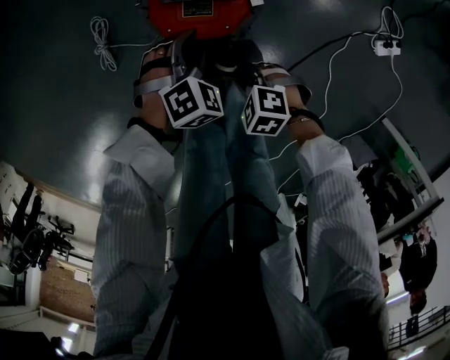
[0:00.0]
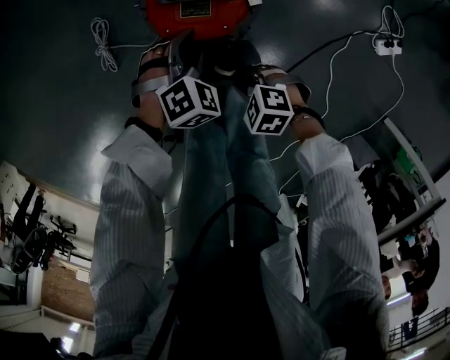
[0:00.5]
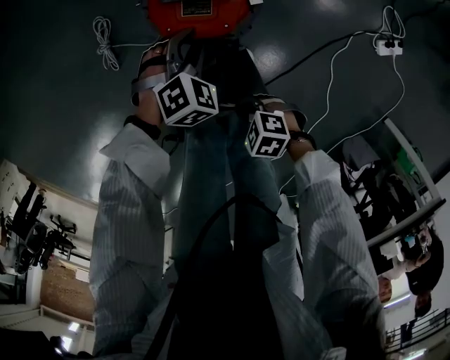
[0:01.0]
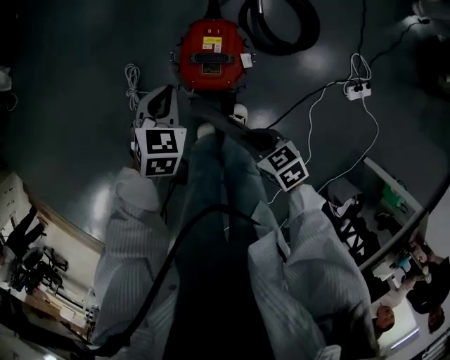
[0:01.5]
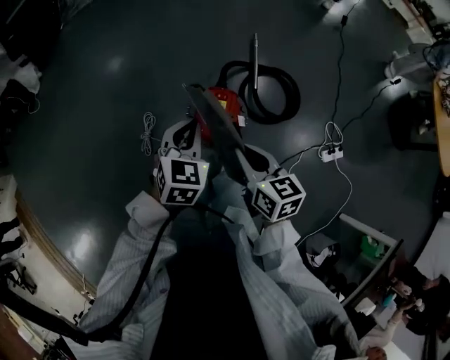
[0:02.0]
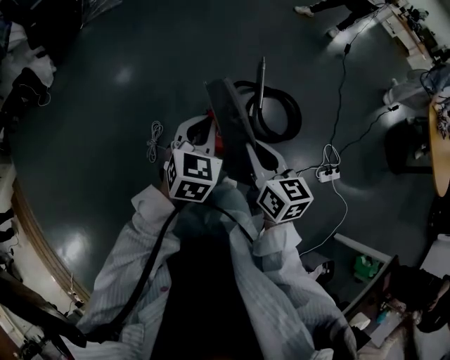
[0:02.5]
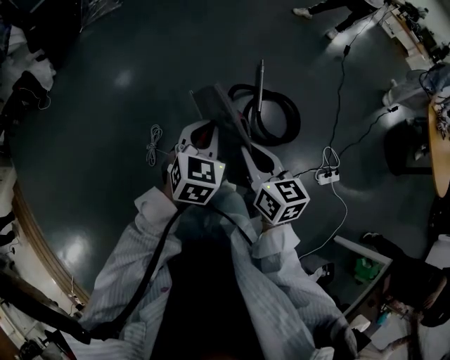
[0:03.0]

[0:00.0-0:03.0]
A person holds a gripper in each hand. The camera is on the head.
0:00.0 to 0:01.5: Both grippers travel together upward, roughly 25 cm. The right gripper rolls clockwise, seen from behind, by some 40 degrees. The left gripper rotates approximately 40 degrees, and closes its fingers.
0:01.5 to 0:03.0: The two grippers go some 35 cm upward. The right gripper tips its fingers upward by approximately 30 degrees.

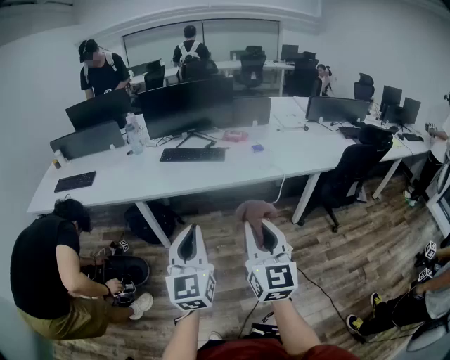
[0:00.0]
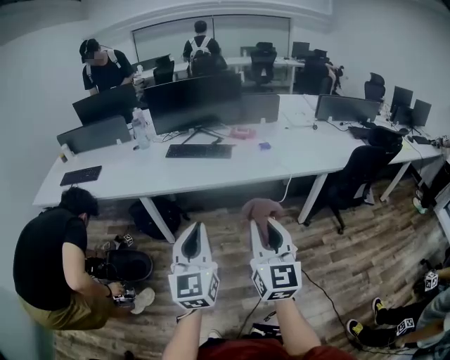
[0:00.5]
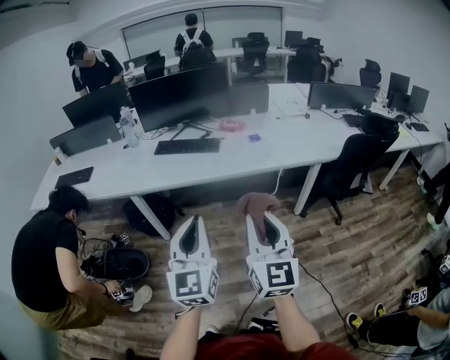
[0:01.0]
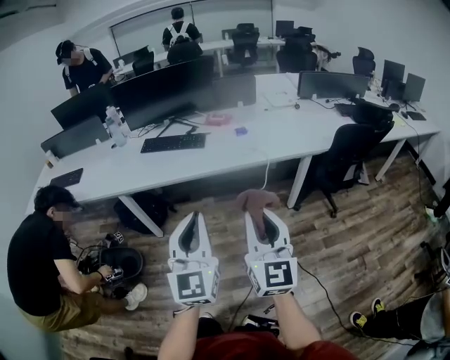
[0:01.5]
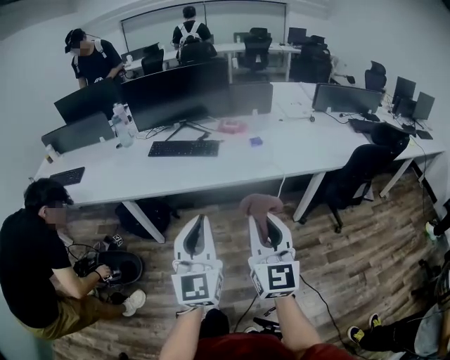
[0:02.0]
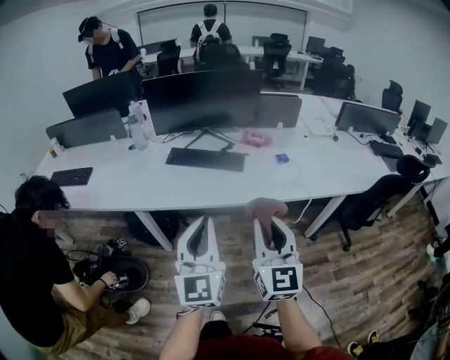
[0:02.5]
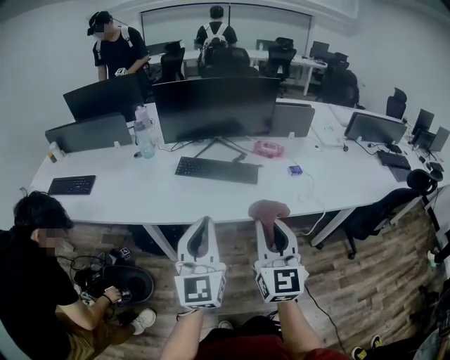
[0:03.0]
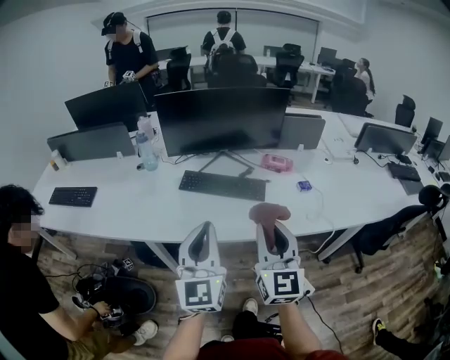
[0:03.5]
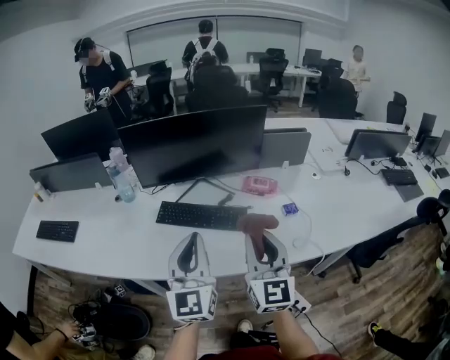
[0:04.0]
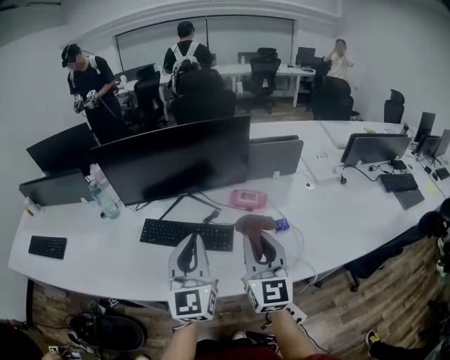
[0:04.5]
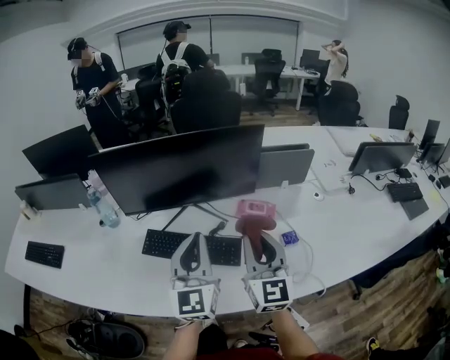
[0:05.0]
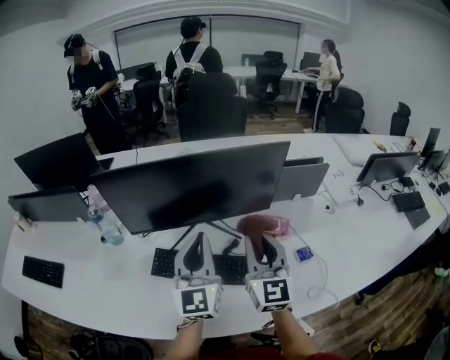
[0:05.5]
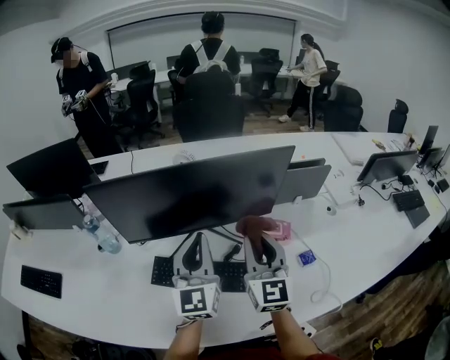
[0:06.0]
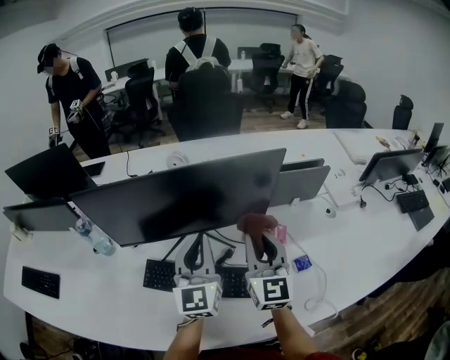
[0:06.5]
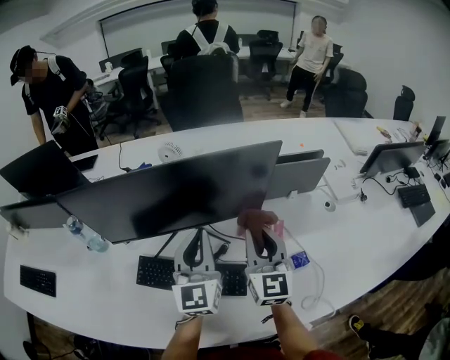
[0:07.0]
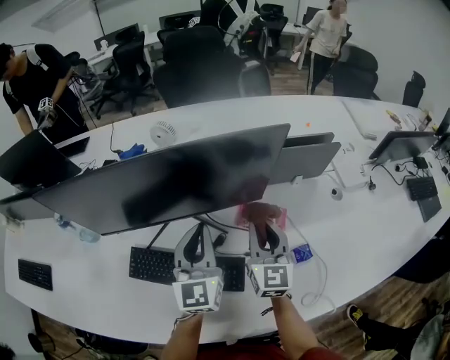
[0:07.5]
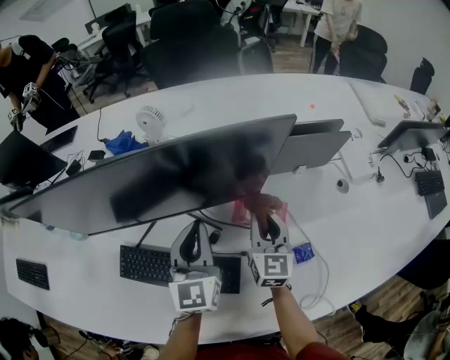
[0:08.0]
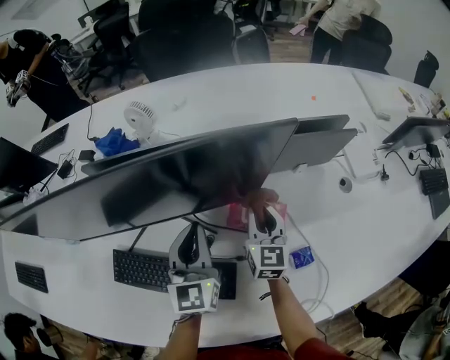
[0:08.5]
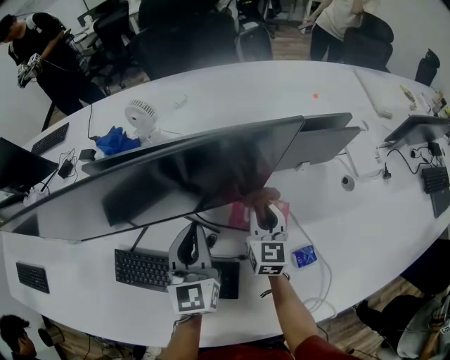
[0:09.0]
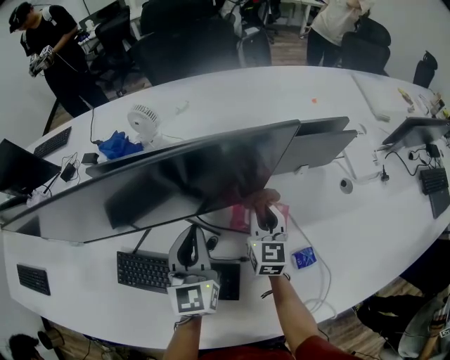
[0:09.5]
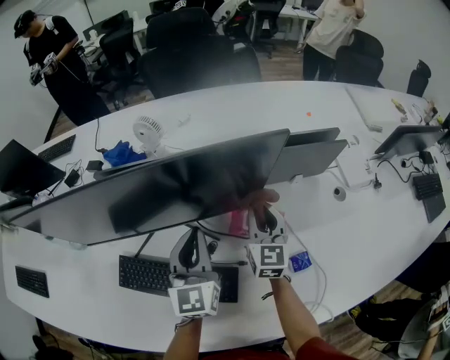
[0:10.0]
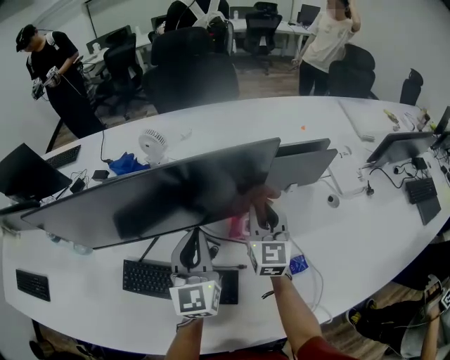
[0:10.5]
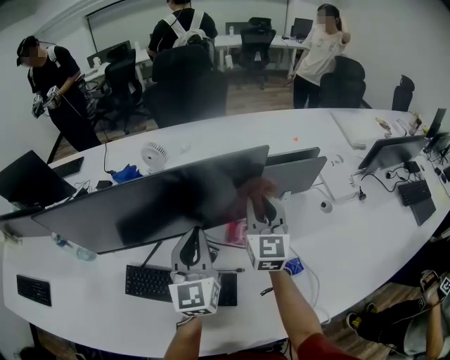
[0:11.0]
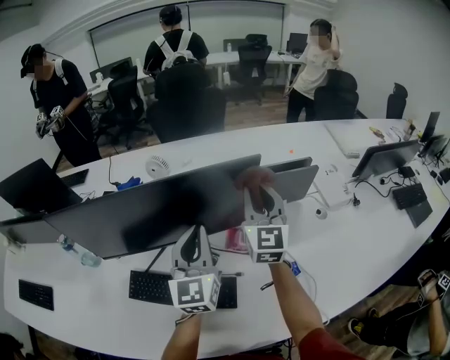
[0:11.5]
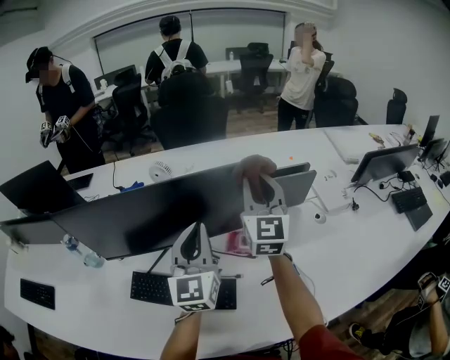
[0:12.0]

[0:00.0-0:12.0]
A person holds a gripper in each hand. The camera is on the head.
0:00.0 to 0:02.0: The grippers both shift forward and to the right by about 15 cm.
0:02.0 to 0:04.0: The grippers both shift forward by some 40 cm.
0:04.0 to 0:06.0: Both grippers travel together forward, about 30 cm.
0:06.0 to 0:08.0: The two grippers go roughly 25 cm downward, forward and to the right.
0:10.0 to 0:12.0: The left gripper shifts approximately 15 cm upward; the right gripper travels upward by about 25 cm, and swivels roughly 20 degrees.

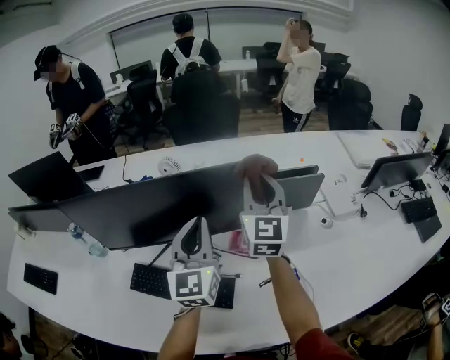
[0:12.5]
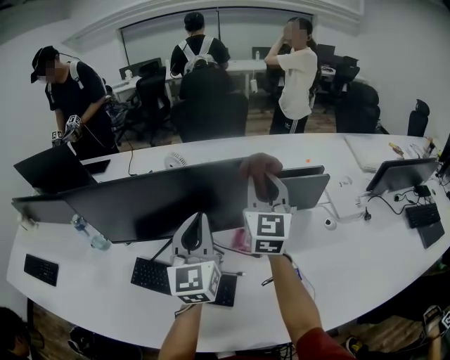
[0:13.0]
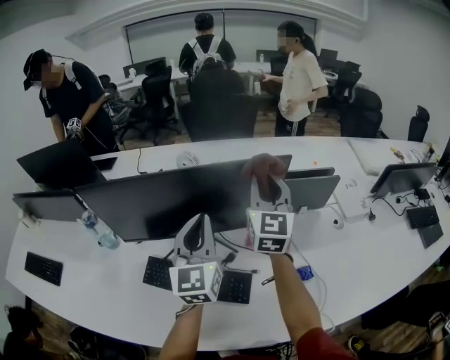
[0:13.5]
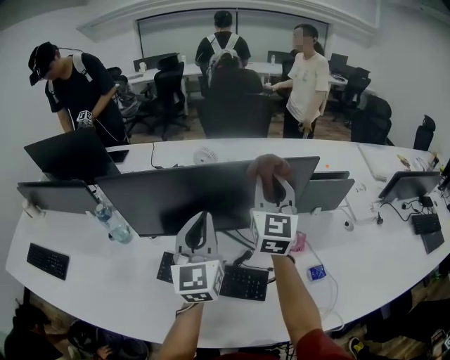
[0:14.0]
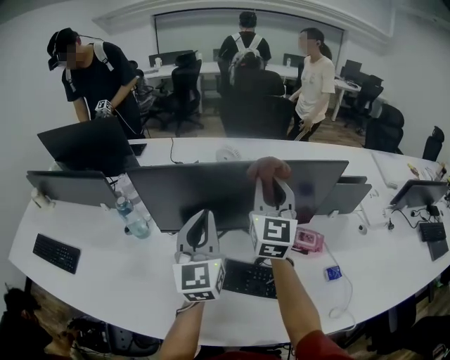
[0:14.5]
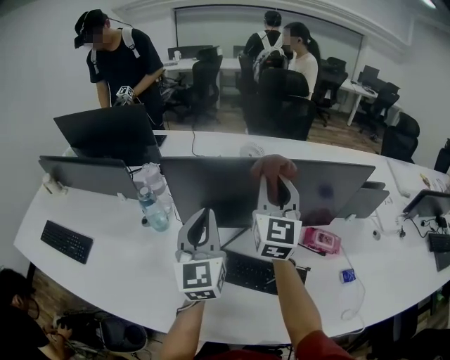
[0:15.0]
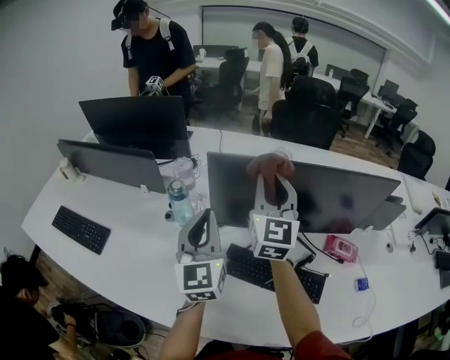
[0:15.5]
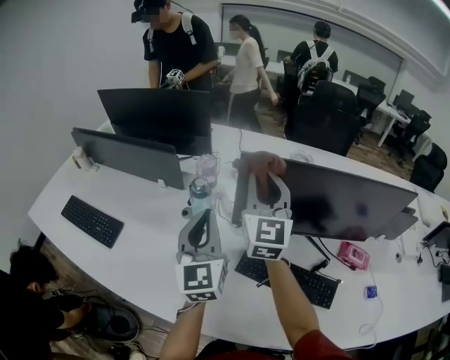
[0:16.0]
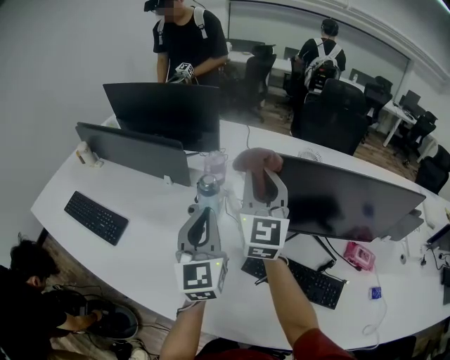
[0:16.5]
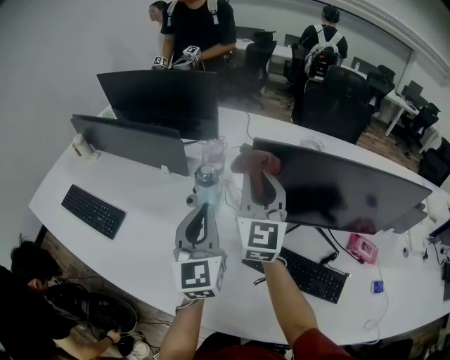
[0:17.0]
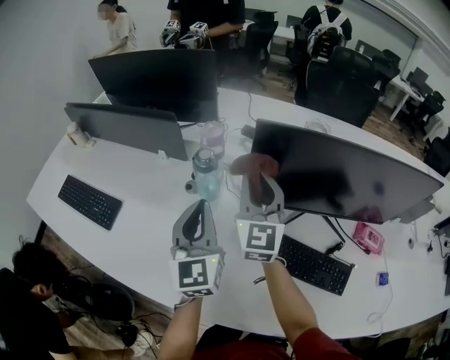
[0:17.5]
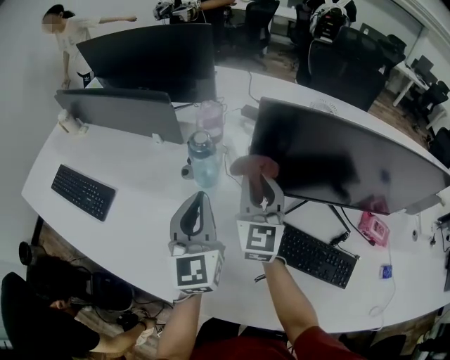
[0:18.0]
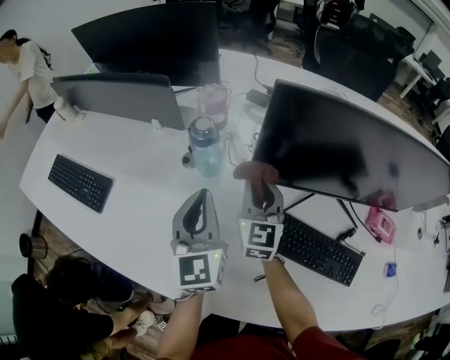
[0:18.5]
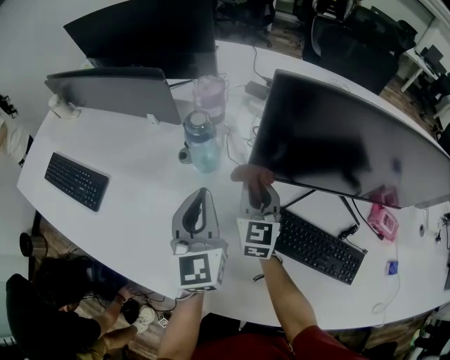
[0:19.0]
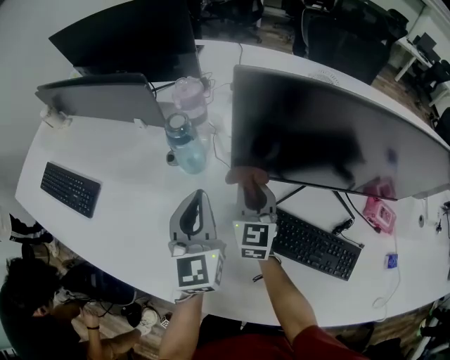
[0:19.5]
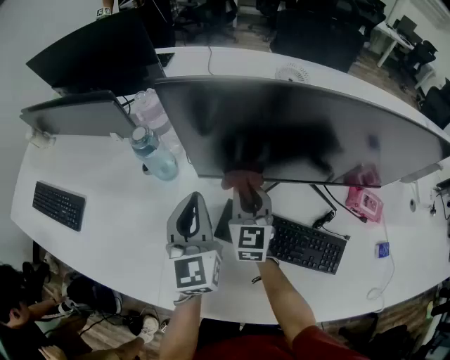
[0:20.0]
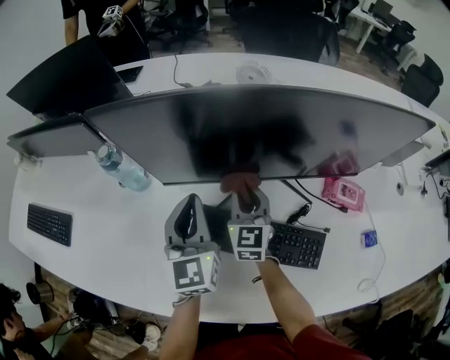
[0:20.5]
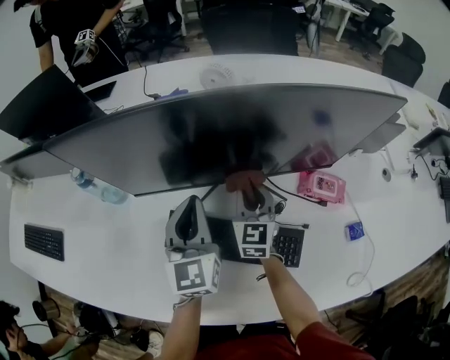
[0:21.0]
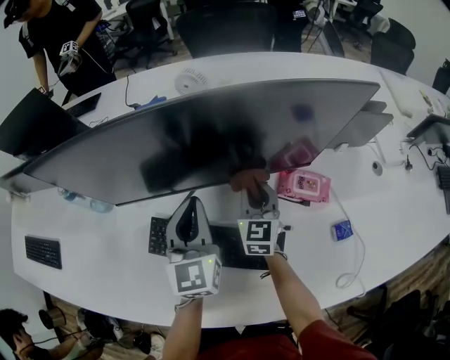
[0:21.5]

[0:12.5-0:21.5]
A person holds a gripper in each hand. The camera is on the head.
0:12.5 to 0:14.5: The grippers both shift to the left by roughly 25 cm.
0:14.5 to 0:17.0: The grippers both shift to the left by about 30 cm.
0:17.0 to 0:19.5: The right gripper is displaced downward by approximately 25 cm, and changes its angle by some 20 degrees, while the left gripper shifts roughly 15 cm downward.
0:19.5 to 0:21.5: The grippers both shift to the right by approximately 35 cm.

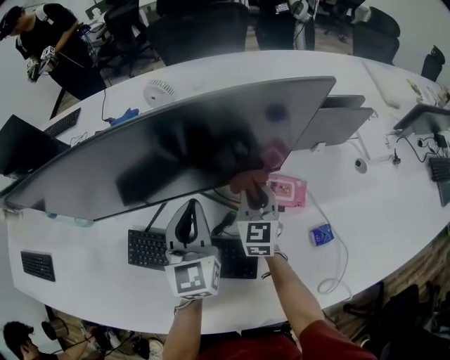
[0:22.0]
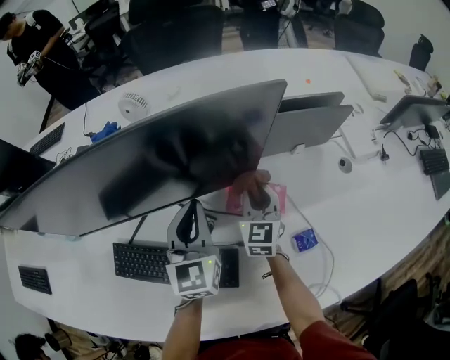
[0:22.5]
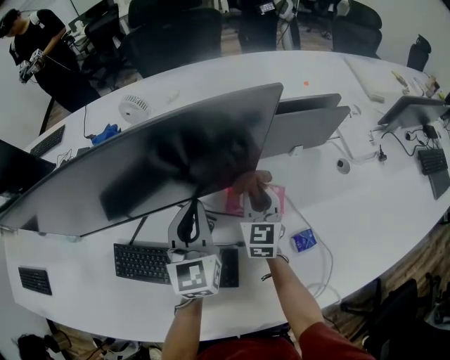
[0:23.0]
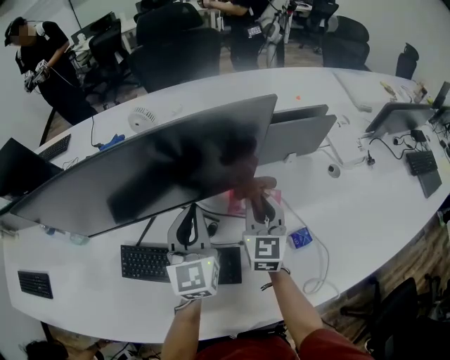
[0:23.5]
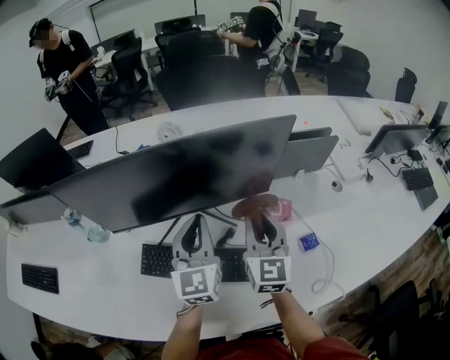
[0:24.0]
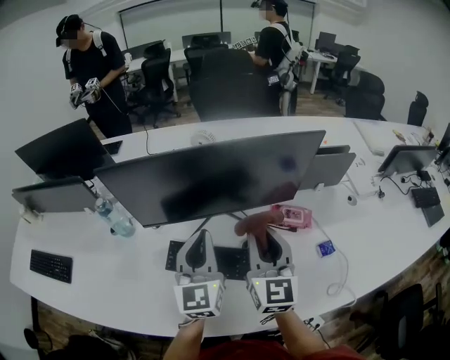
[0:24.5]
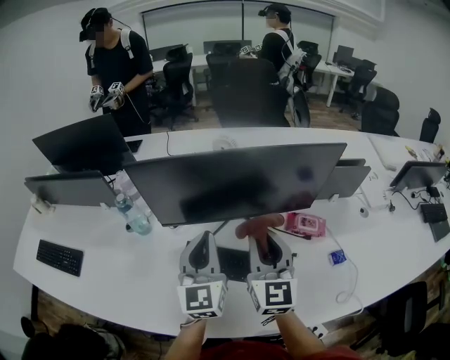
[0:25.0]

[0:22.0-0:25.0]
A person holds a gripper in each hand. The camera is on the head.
0:22.0 to 0:23.5: The left gripper travels to the right by some 5 cm; the right gripper is displaced upward and to the right by approximately 10 cm.
0:23.5 to 0:25.0: The left gripper shifts about 25 cm to the left and backward. The right gripper shifts about 30 cm to the left, backward and upward.
